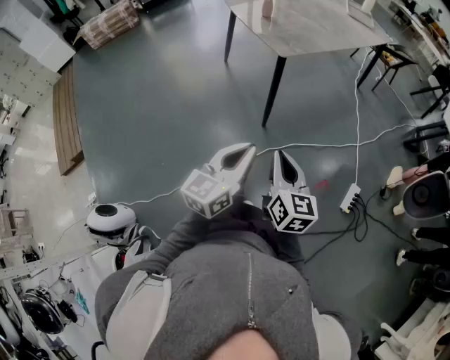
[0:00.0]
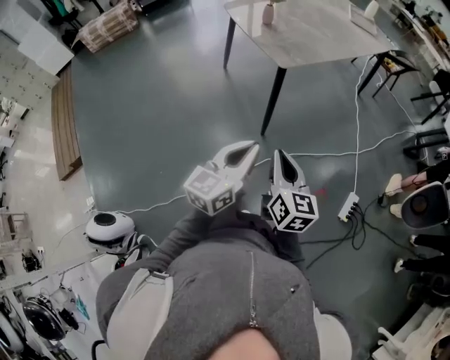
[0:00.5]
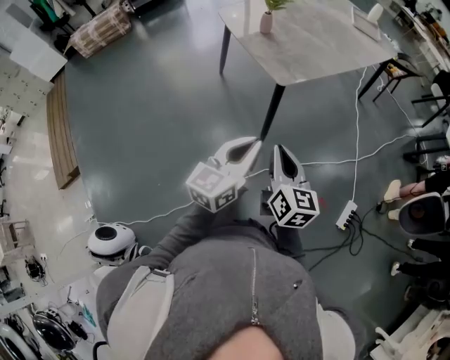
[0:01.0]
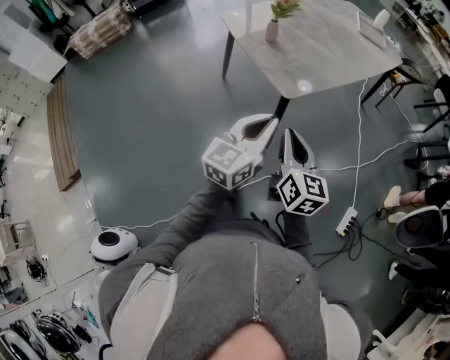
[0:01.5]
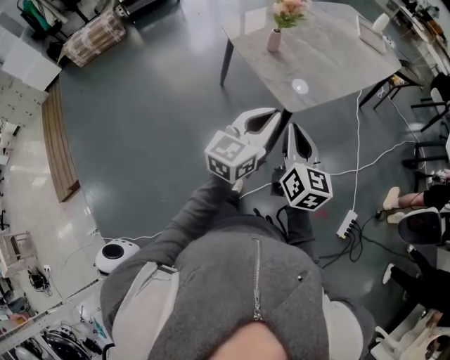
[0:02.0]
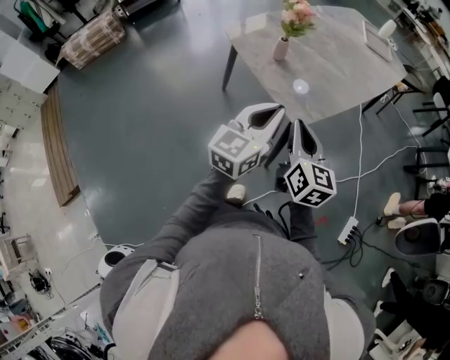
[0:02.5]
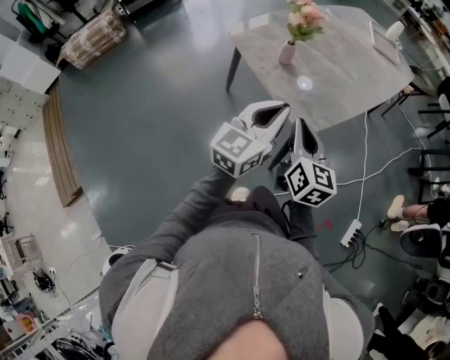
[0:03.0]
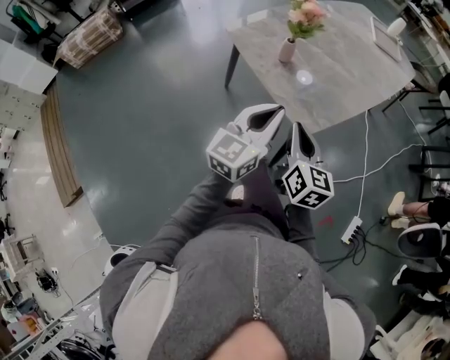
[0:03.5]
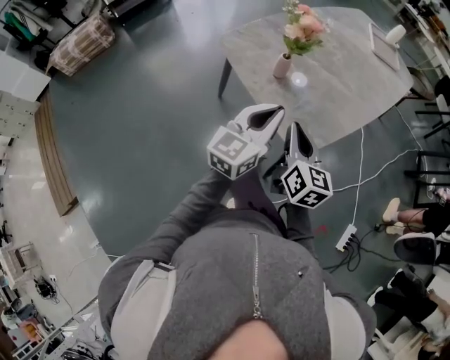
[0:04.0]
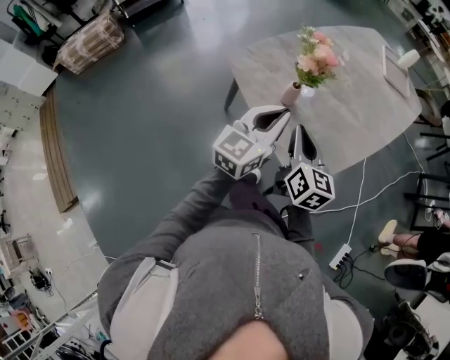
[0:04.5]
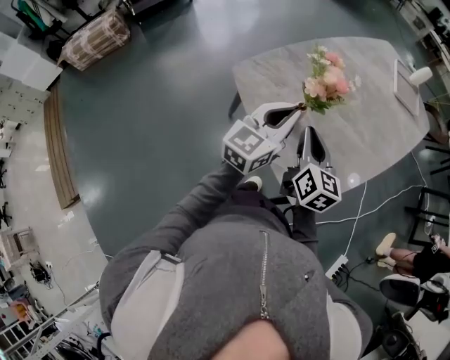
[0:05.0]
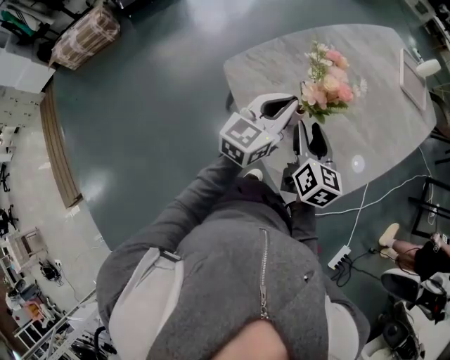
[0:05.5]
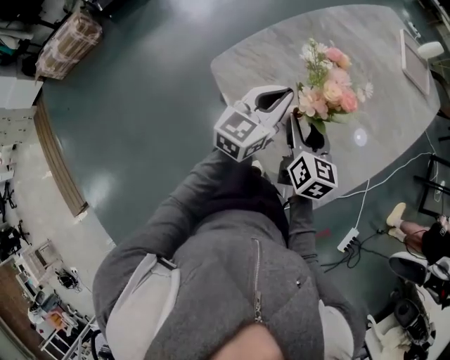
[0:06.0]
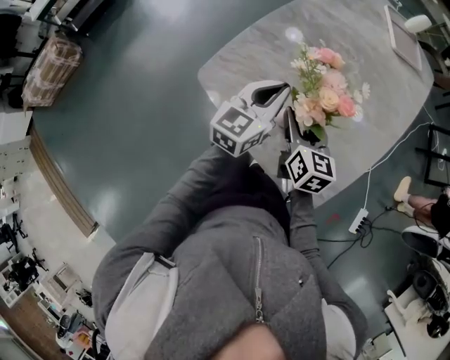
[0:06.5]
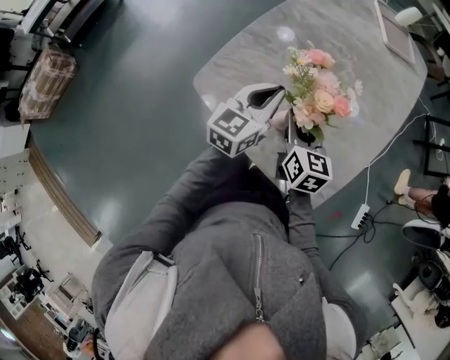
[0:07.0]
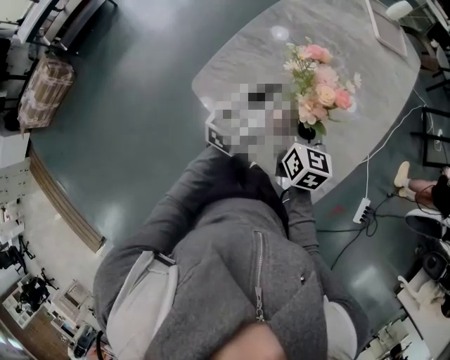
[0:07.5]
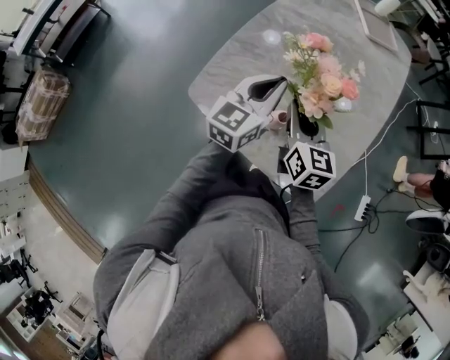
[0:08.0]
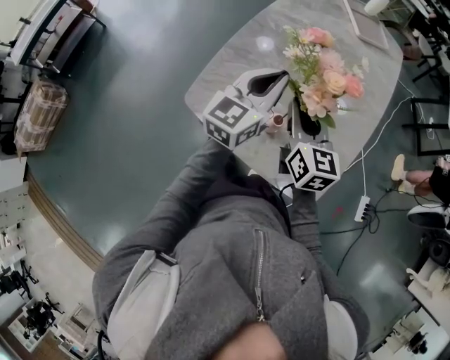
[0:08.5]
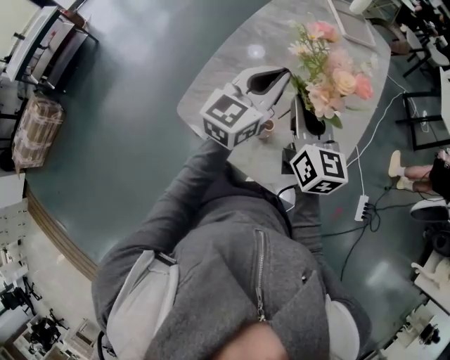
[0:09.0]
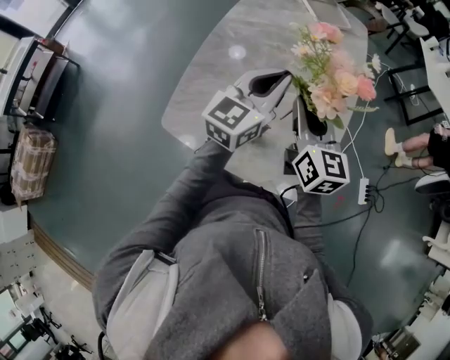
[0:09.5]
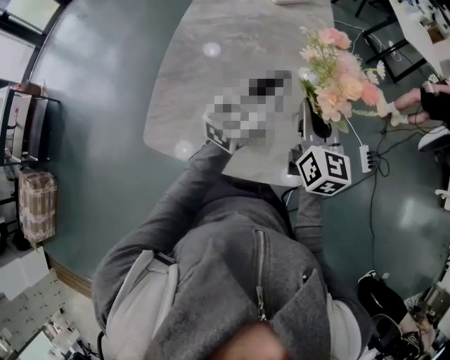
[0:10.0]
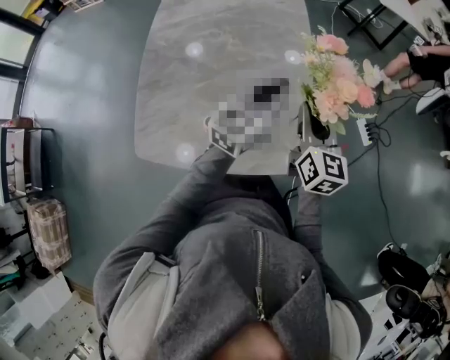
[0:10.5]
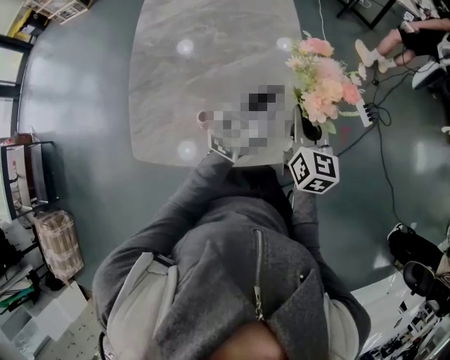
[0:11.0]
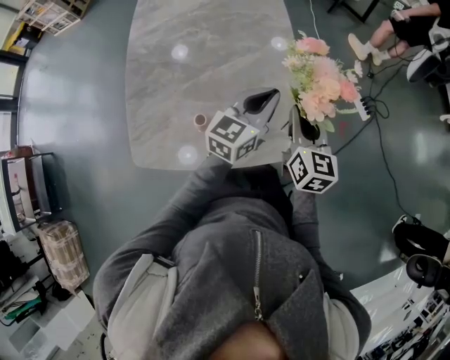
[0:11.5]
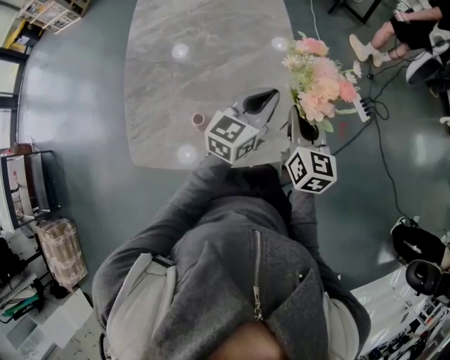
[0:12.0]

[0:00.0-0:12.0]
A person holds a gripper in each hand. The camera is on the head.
0:00.0 to 0:02.0: The two grippers go some 35 cm forward.
0:02.0 to 0:04.0: Both grippers travel together forward, approximately 20 cm.
0:04.0 to 0:06.0: Both grippers travel together forward, approximately 25 cm. The right gripper opens up.
0:06.0 to 0:08.0: The right gripper travels upward by roughly 5 cm, and closes its fingers; the left gripper goes approximately 5 cm forward.
0:08.0 to 0:10.0: The left gripper ends up about 20 cm from where it was, and rotates some 30 degrees. Meanwhile the right gripper changes place by approximately 20 cm, and swivels roughly 30 degrees.
0:10.0 to 0:12.0: Both grippers move to the right and downward, about 15 cm.

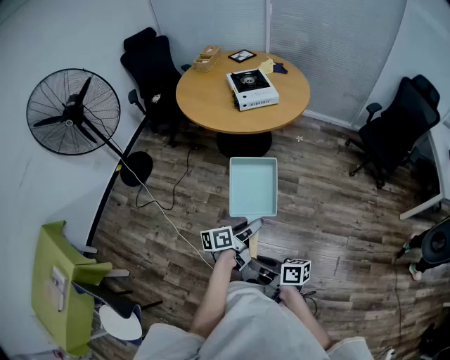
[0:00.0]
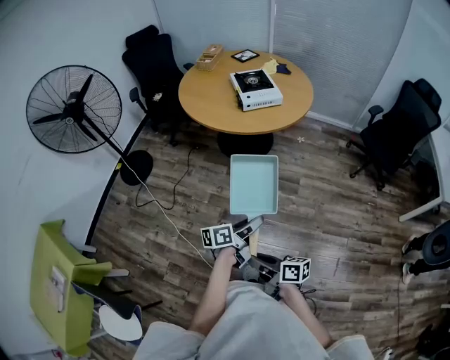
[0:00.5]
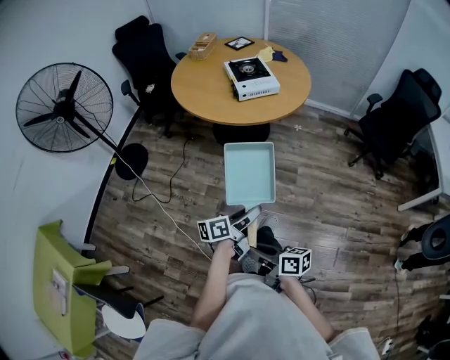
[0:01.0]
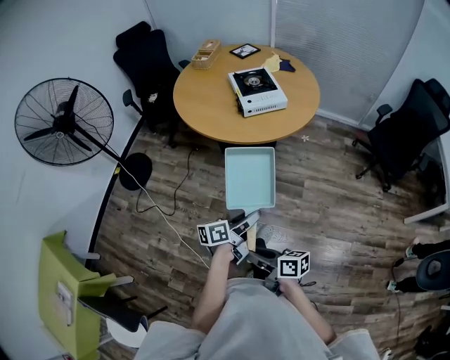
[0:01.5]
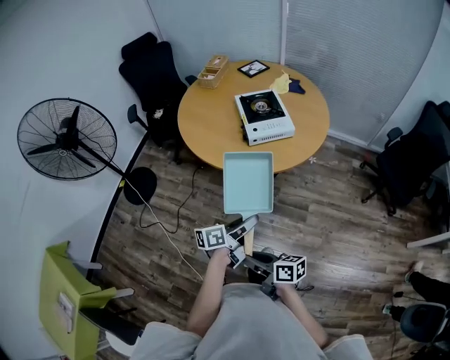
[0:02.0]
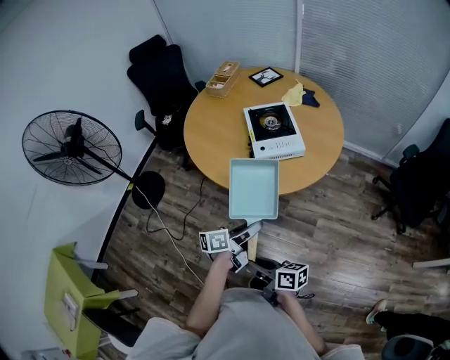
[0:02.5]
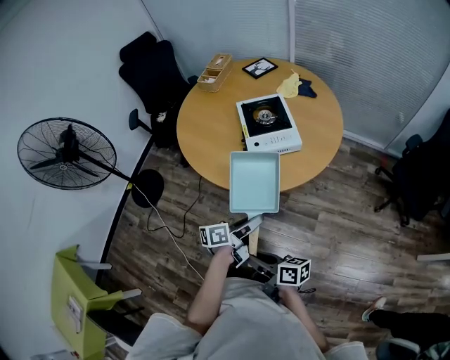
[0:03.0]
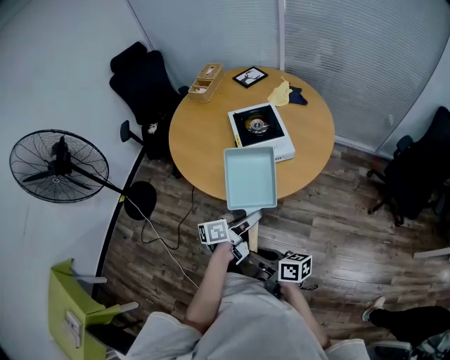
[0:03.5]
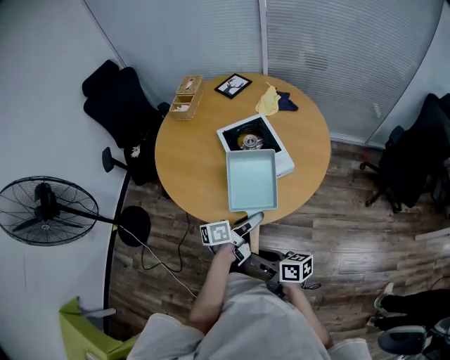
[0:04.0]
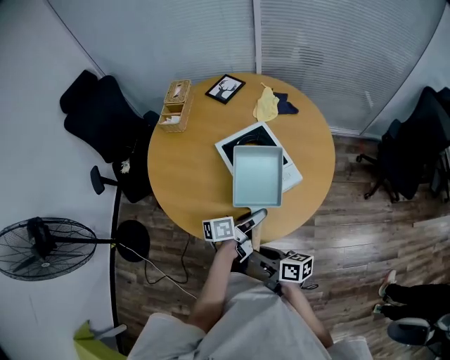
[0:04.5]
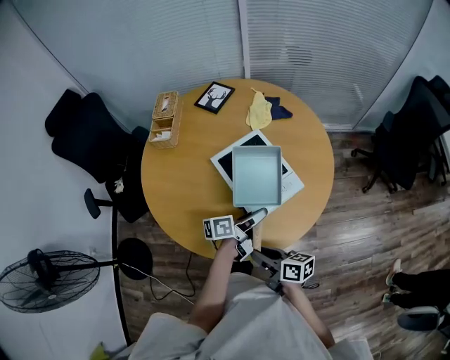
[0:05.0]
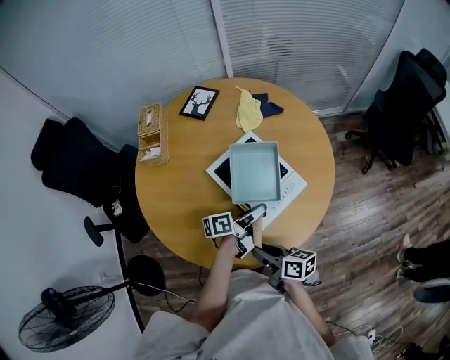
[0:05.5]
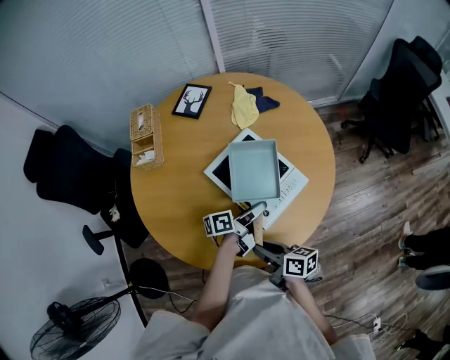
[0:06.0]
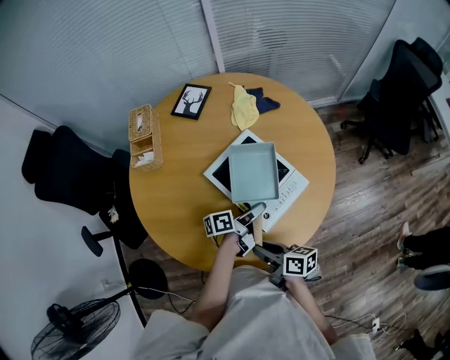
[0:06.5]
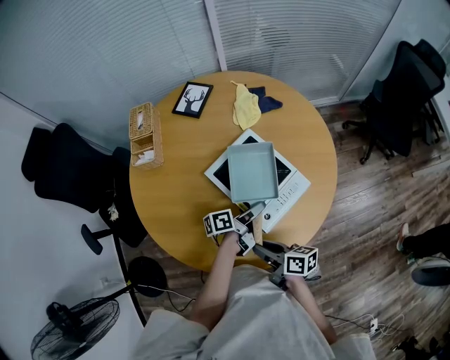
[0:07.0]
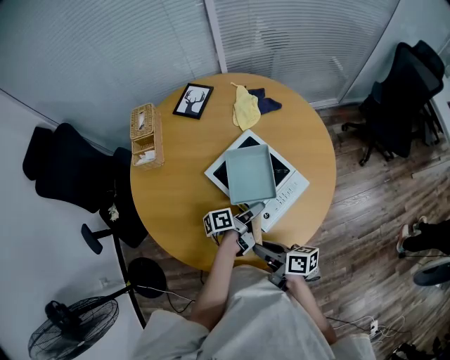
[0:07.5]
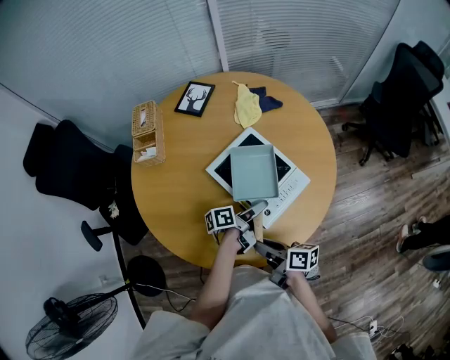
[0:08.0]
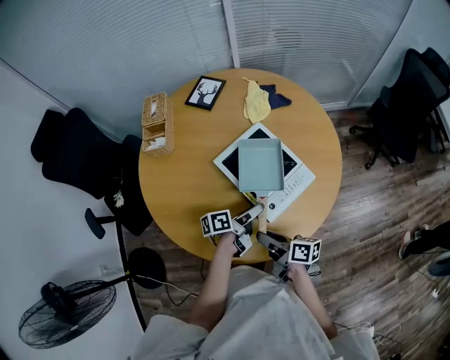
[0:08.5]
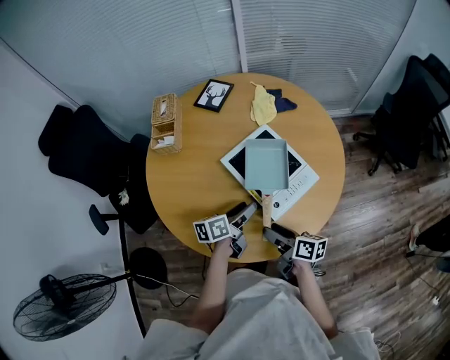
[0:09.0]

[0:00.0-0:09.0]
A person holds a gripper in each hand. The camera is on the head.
0:00.0 to 0:02.0: The two grippers go some 25 cm forward.
0:02.0 to 0:04.5: Both grippers move forward, some 35 cm.
0:04.5 to 0:07.0: The left gripper travels forward and downward by about 15 cm; the right gripper shifts approximately 15 cm forward and to the left.
0:07.0 to 0:09.0: The left gripper heads to the left, covering about 10 cm, and changes its angle by approximately 30 degrees. The right gripper opens.

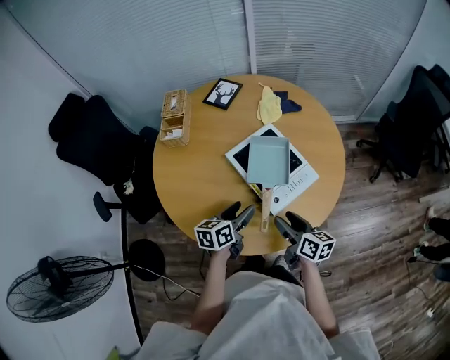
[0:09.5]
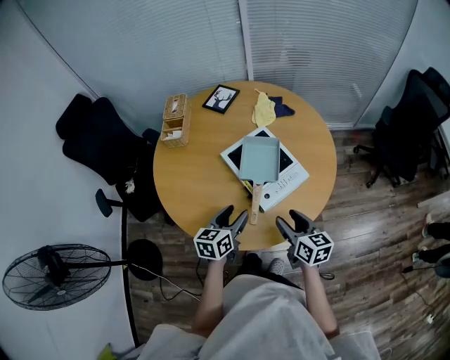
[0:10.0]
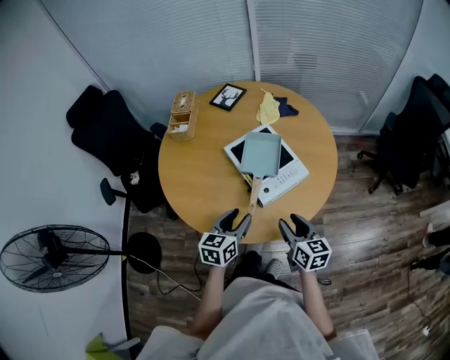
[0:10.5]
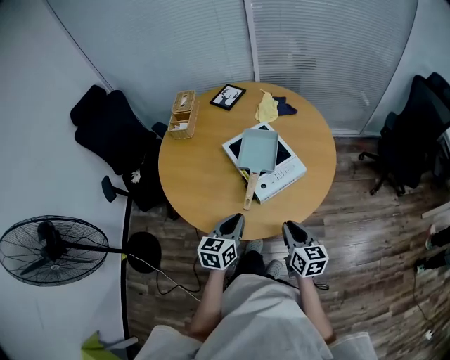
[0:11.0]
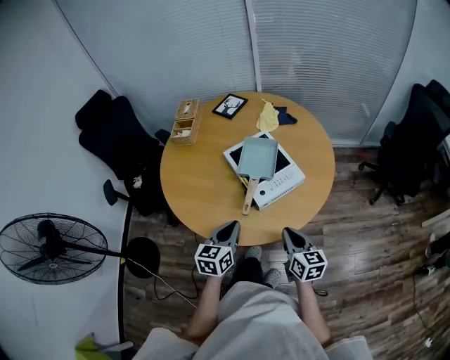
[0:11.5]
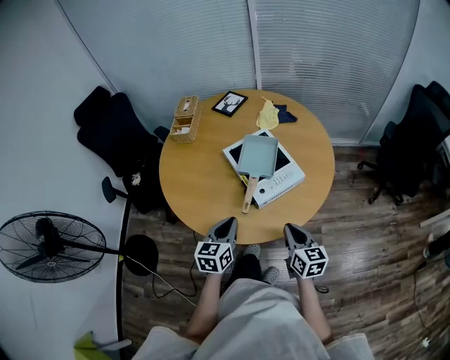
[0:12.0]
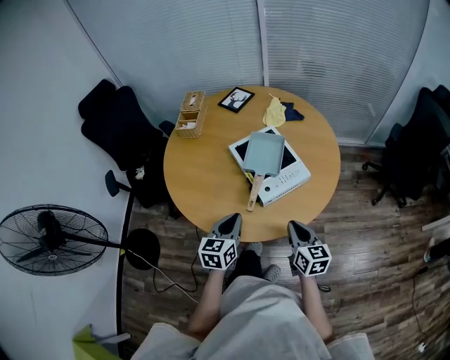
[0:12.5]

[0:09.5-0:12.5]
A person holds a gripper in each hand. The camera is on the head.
0:09.5 to 0:11.0: The right gripper travels backward and to the right by some 10 cm, swivels about 20 degrees, and closes. The left gripper goes approximately 10 cm backward, rotates some 20 degrees, and closes up.
0:11.0 to 0:12.5: The grippers move only a little.

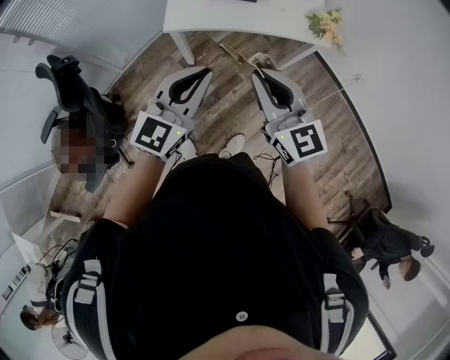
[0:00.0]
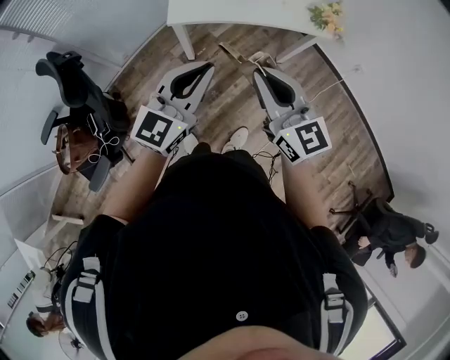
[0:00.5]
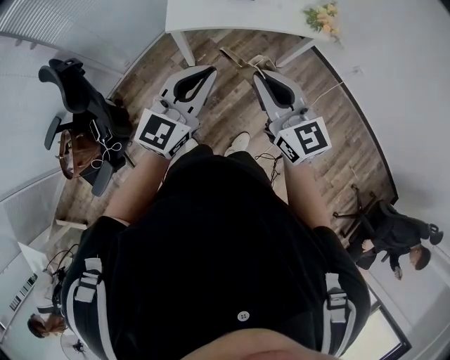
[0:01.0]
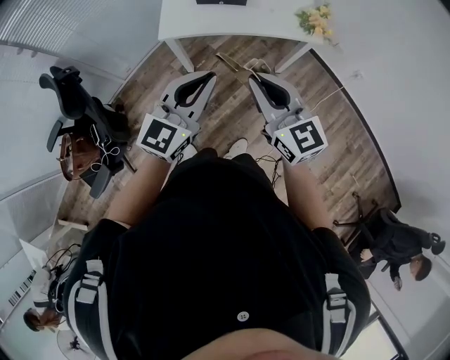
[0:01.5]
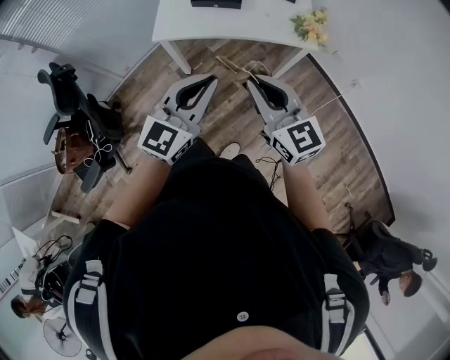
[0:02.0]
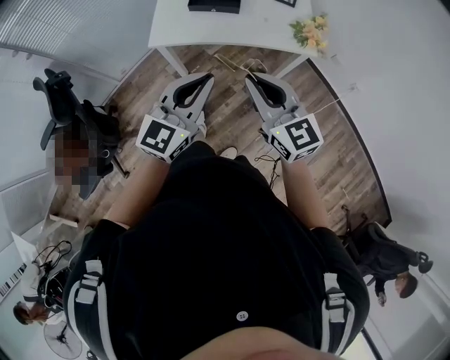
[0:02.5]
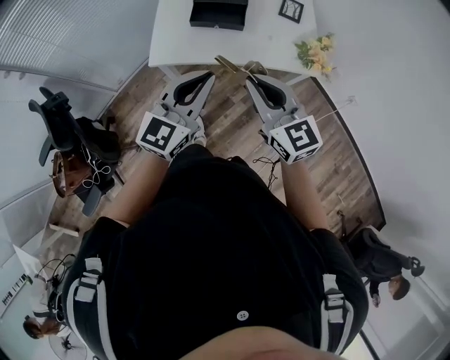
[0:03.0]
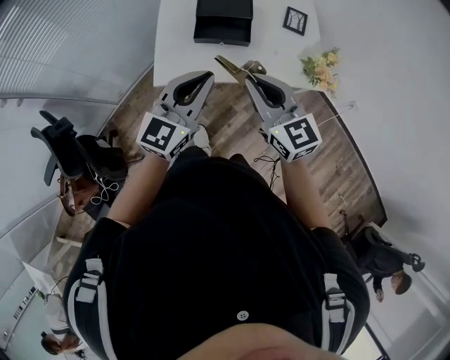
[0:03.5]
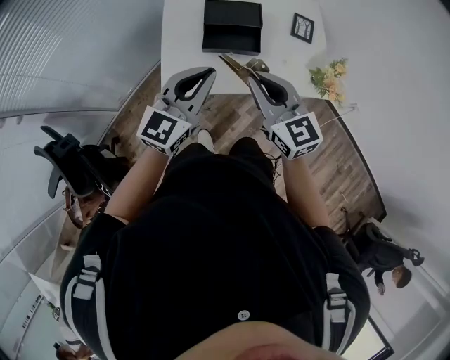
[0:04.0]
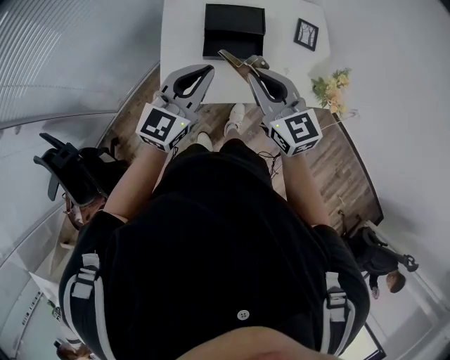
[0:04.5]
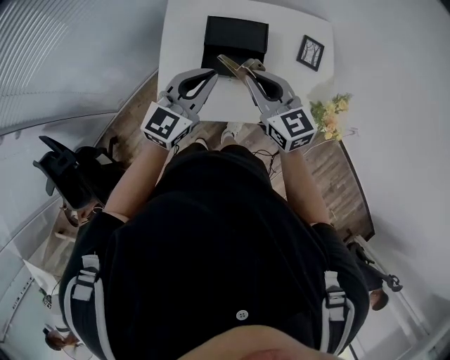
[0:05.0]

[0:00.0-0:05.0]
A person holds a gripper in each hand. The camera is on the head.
0:00.0 to 0:02.5: The grippers both shift to the right by roughly 10 cm.
0:02.5 to 0:05.0: The pair of grippers is taken forward, approximately 40 cm.
